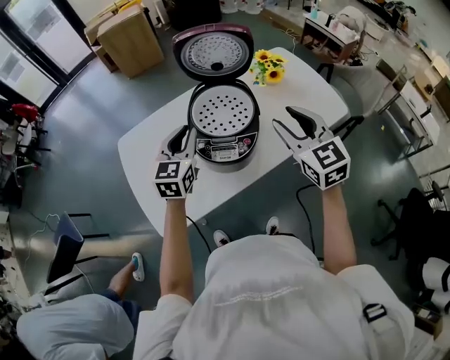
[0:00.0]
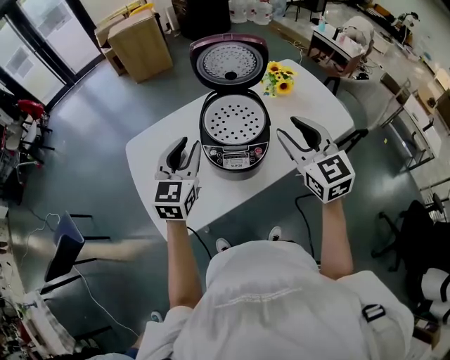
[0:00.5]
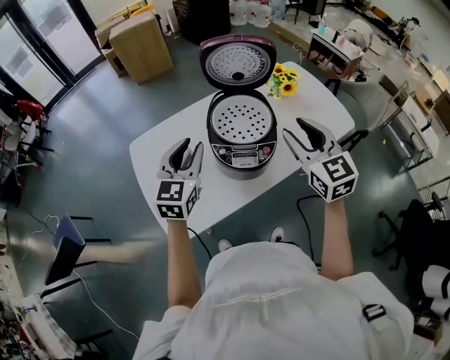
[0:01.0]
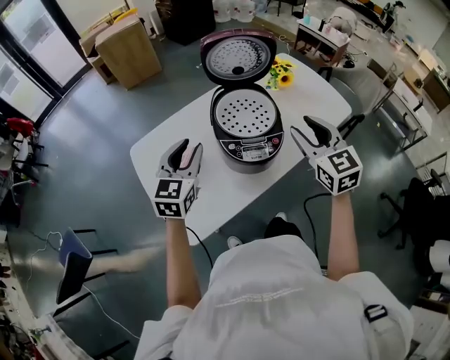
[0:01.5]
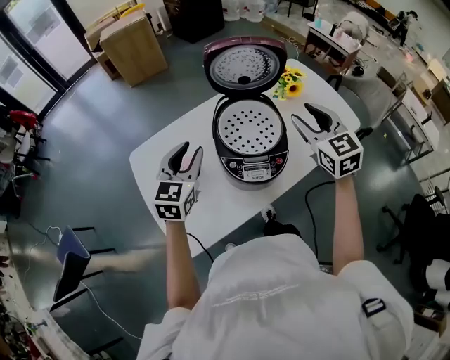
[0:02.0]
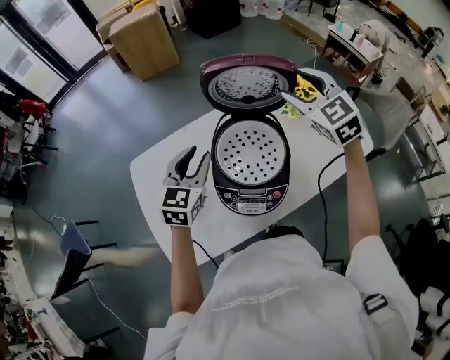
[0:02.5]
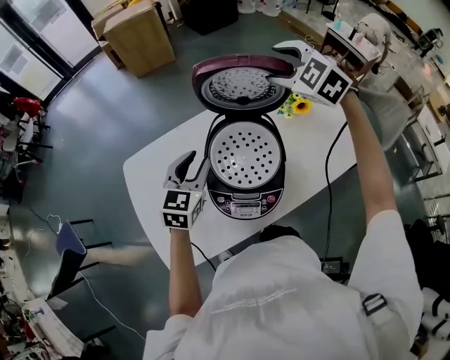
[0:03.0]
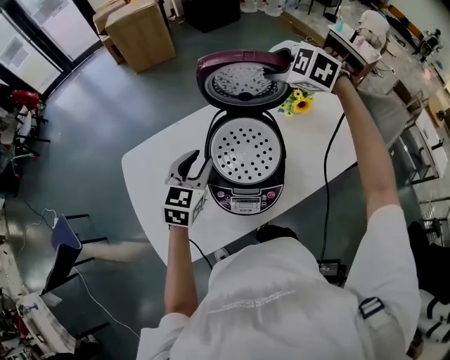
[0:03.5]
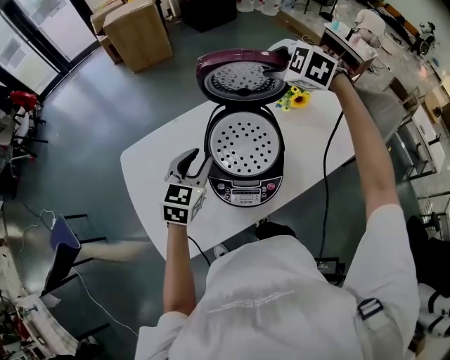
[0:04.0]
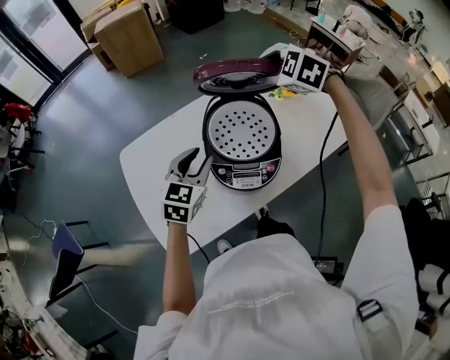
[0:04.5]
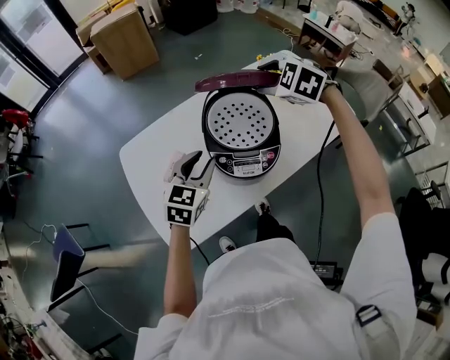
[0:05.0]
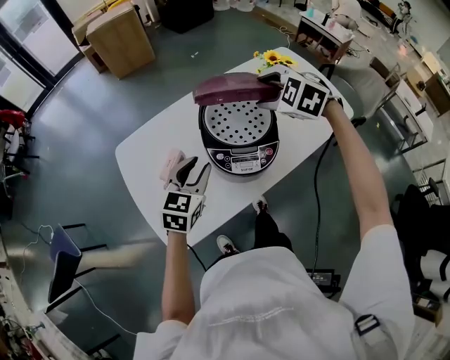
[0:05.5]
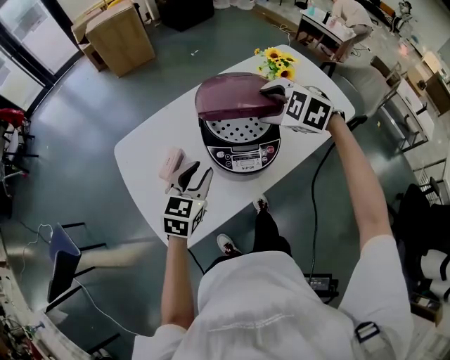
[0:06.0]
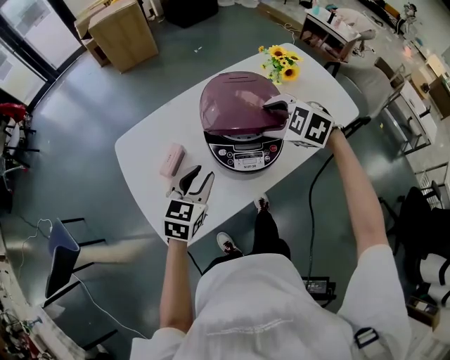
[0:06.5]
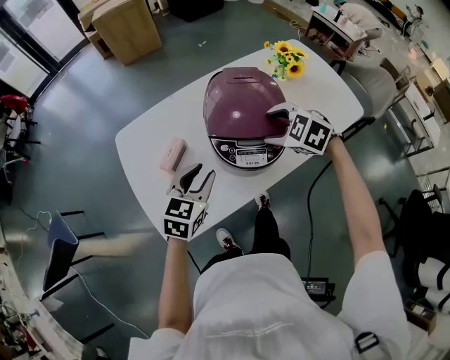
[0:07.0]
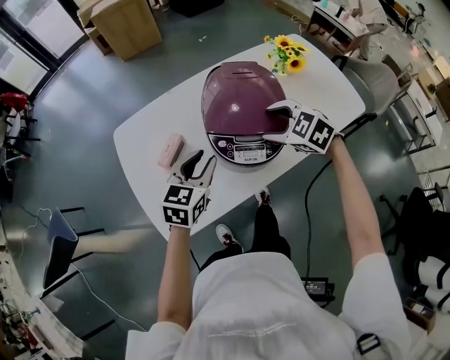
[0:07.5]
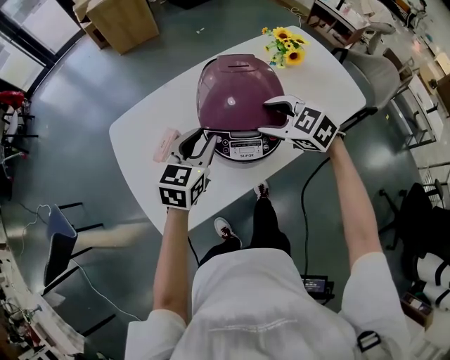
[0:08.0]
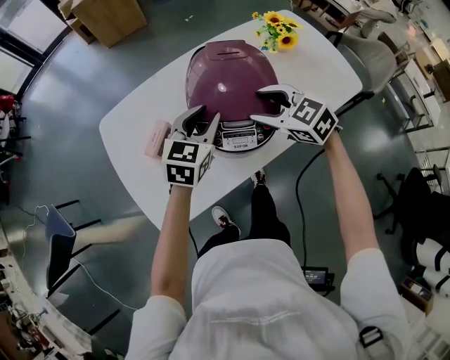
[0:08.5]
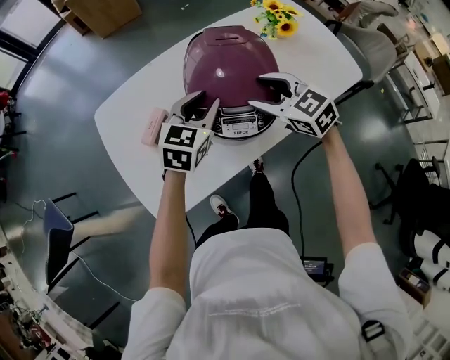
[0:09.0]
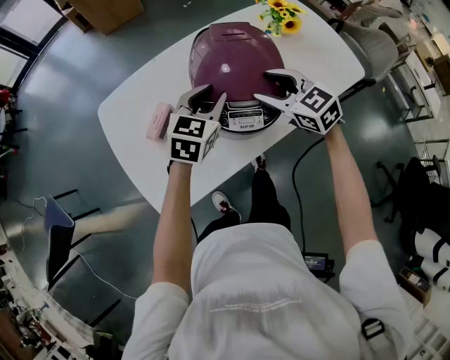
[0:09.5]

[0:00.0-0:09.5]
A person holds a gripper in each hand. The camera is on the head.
0:00.0 to 0:02.0: The left gripper travels to the left by approximately 10 cm. Meanwhile the right gripper shifts about 10 cm forward.
0:02.0 to 0:04.0: The right gripper shifts approximately 20 cm forward, and tips its fingers downward by roughly 30 degrees, while the left gripper goes some 5 cm to the right.
0:04.0 to 0:05.5: The right gripper goes about 15 cm backward. The left gripper heads backward, covering approximately 10 cm.
0:05.5 to 0:07.5: The right gripper shifts some 15 cm downward and backward.
0:07.5 to 0:09.5: The left gripper heads to the right and forward, covering roughly 10 cm; the right gripper rotates roughly 30 degrees.

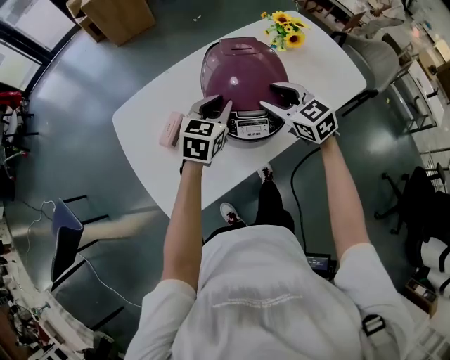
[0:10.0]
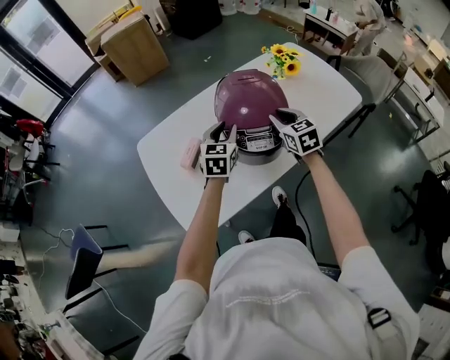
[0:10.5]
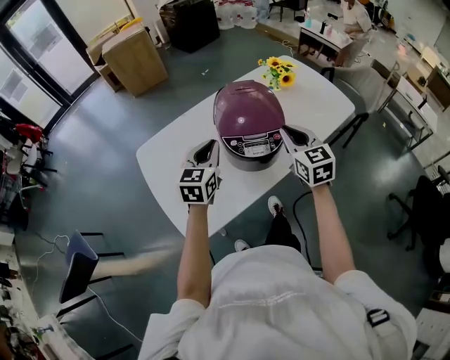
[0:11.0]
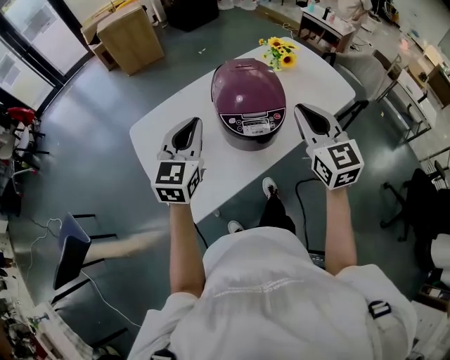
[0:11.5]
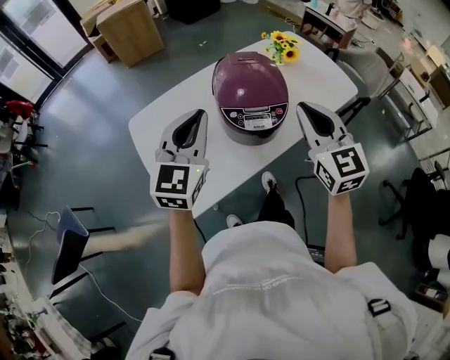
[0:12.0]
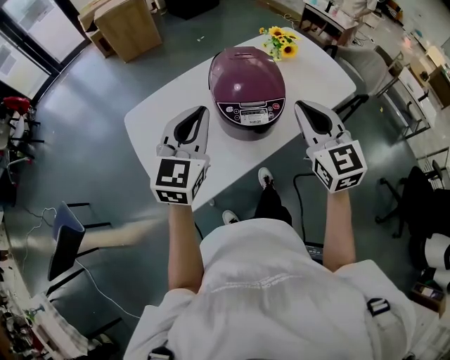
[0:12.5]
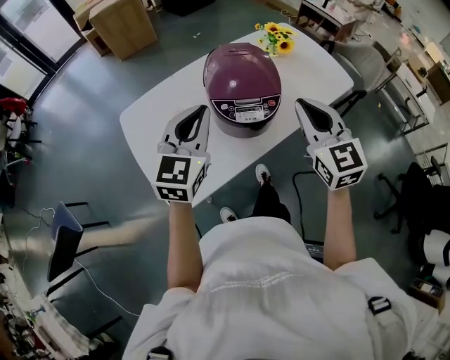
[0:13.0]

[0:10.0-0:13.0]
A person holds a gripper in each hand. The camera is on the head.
0:10.0 to 0:11.5: The left gripper heads upward, backward and to the left, covering approximately 20 cm, and swivels about 20 degrees, while the right gripper is displaced upward and backward by approximately 20 cm, rotates roughly 30 degrees, and closes.
0:11.5 to 0:13.0: The grippers stay close to where they were, moving slightly.

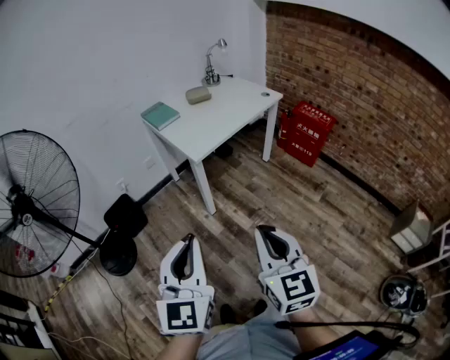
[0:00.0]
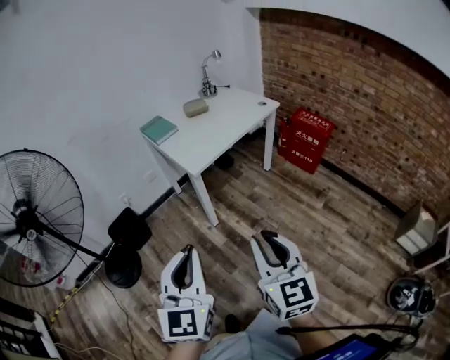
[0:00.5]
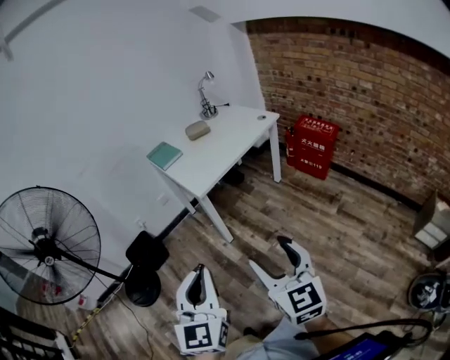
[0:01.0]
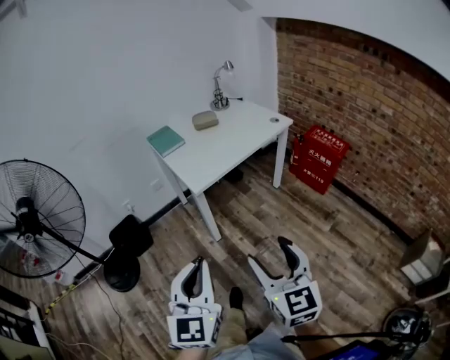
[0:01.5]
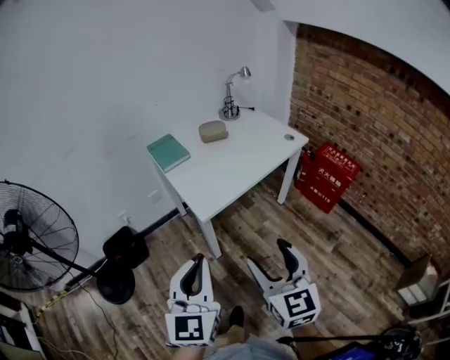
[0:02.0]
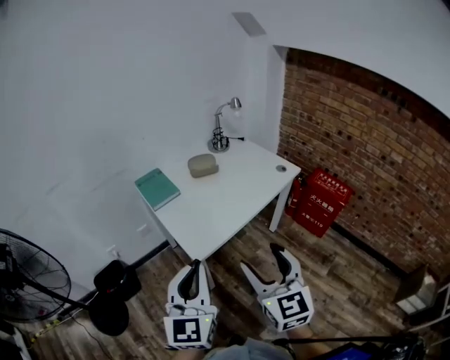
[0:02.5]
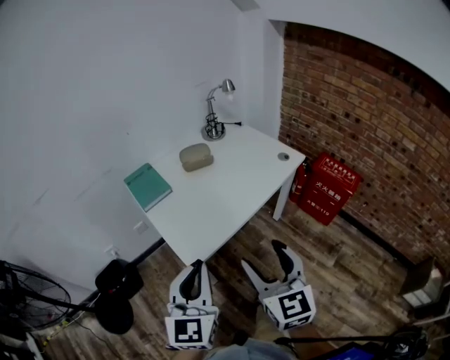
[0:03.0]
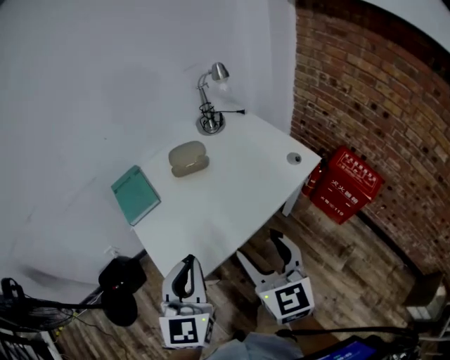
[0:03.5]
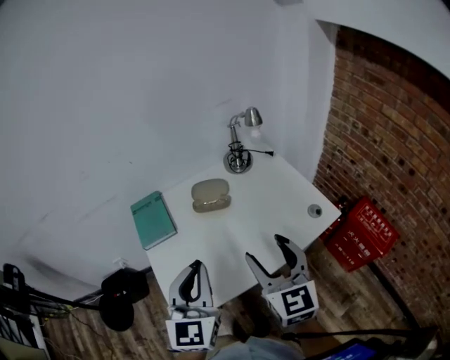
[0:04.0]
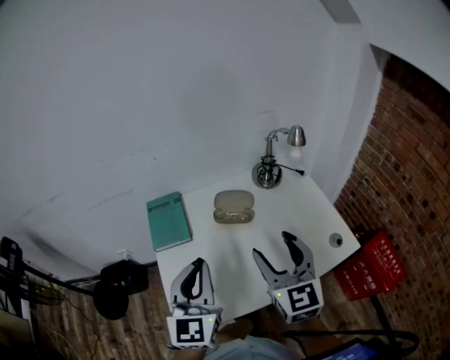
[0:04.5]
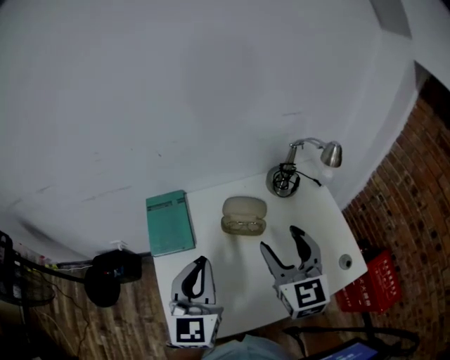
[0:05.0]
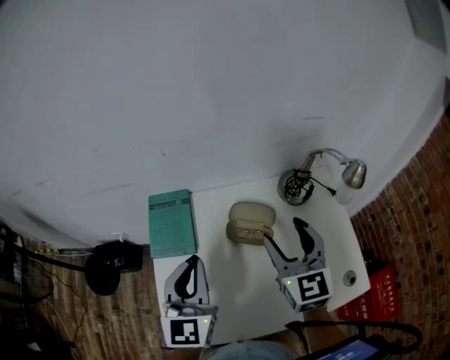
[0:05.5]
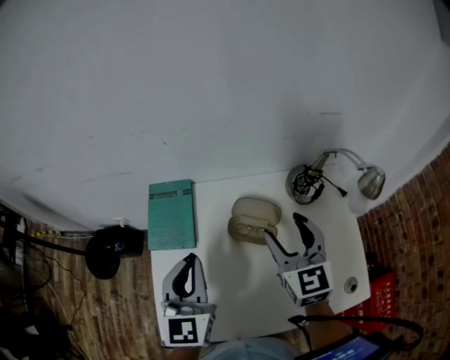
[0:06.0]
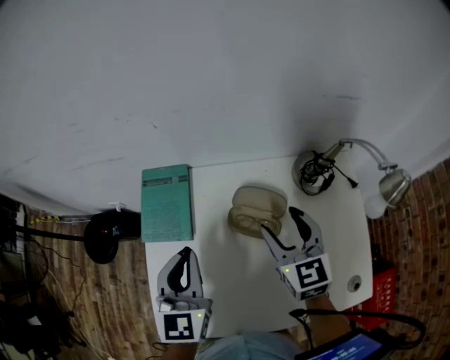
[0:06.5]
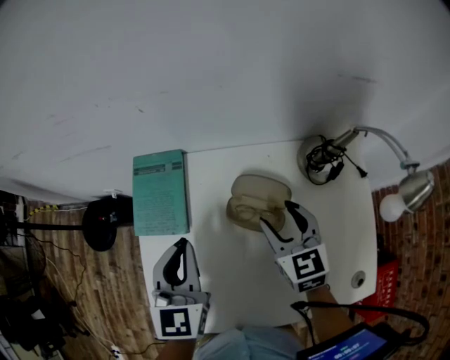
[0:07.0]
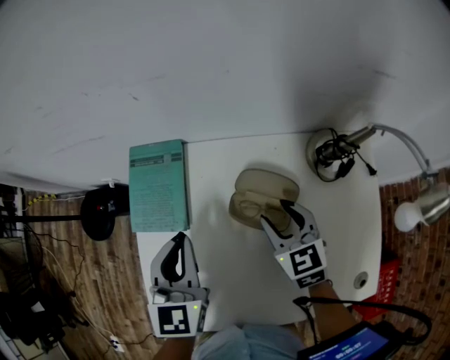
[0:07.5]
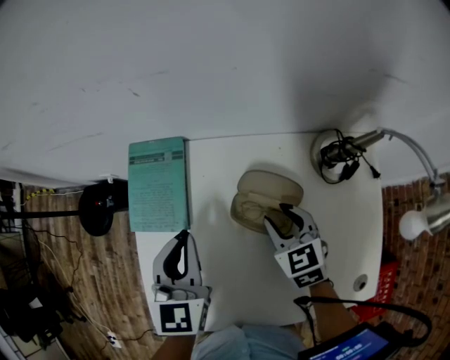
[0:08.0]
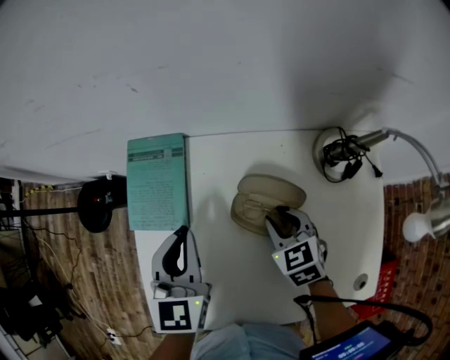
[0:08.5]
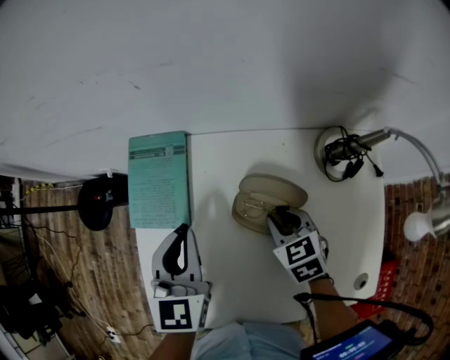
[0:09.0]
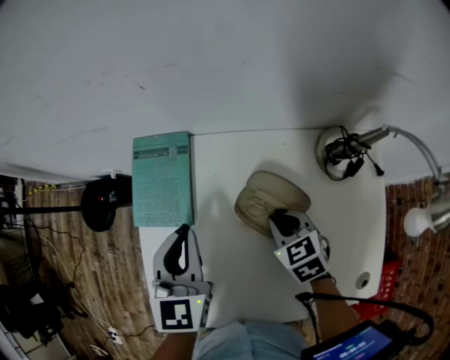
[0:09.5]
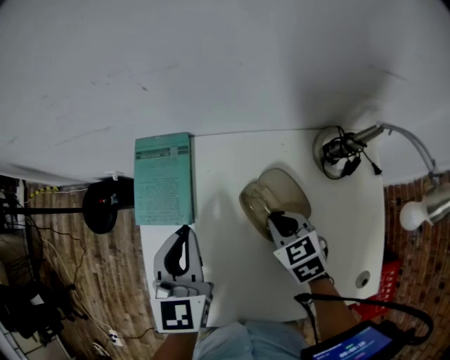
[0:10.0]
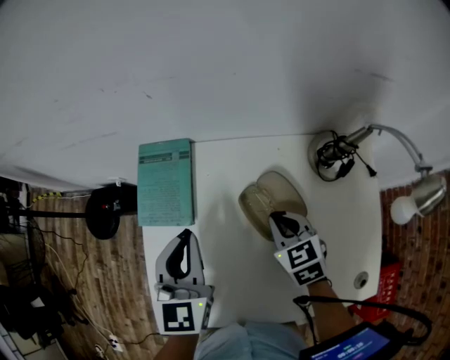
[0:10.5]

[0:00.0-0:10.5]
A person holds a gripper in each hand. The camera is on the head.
0:00.0 to 0:02.0: Both grippers travel together forward, some 25 cm. The right gripper opens up.
0:02.0 to 0:04.0: Both grippers are carried forward, approximately 50 cm.
0:04.0 to 0:06.5: The grippers both shift forward by roughly 30 cm. The left gripper rotates approximately 30 degrees. The right gripper rotates approximately 30 degrees.
0:06.5 to 0:08.5: The right gripper travels downward by roughly 15 cm, turns by roughly 30 degrees, and closes. The left gripper is displaced downward by approximately 5 cm.
0:08.5 to 0:10.5: There are only small adjustments of the grippers.

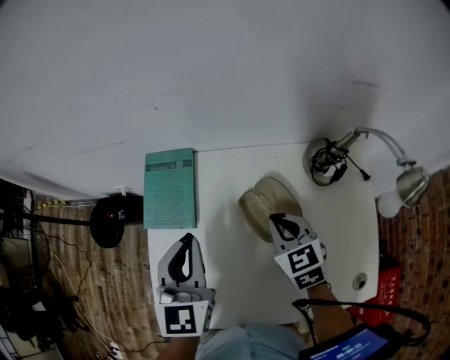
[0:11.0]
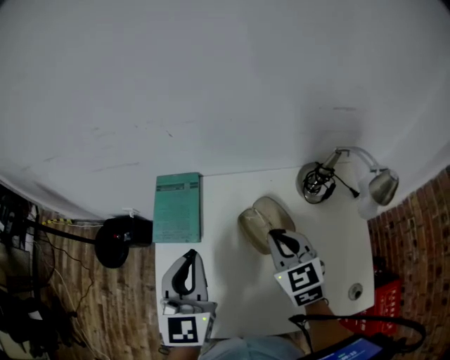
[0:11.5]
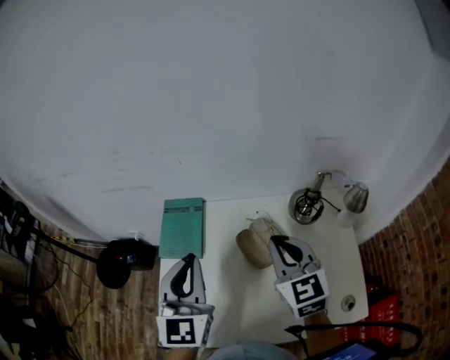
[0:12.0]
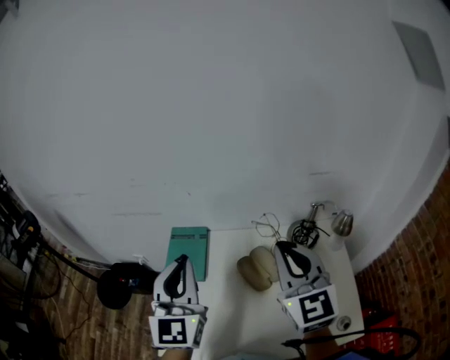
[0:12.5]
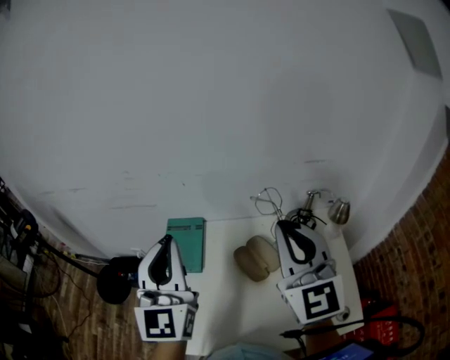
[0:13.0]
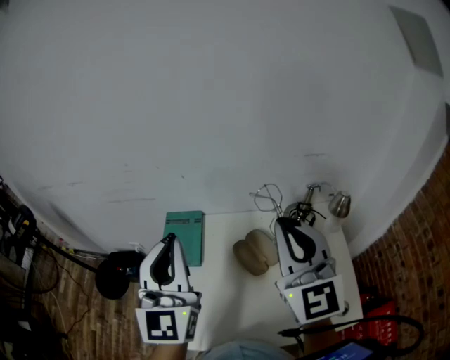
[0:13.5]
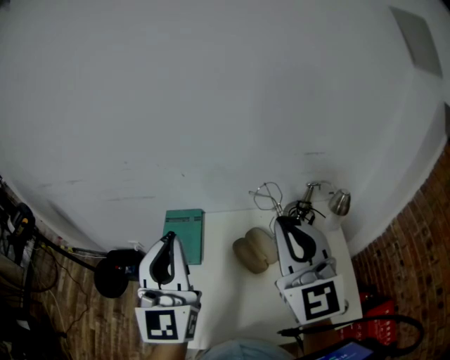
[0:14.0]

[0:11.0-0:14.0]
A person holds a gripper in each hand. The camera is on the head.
0:11.0 to 0:12.5: The left gripper travels upward by approximately 15 cm, and swivels about 20 degrees. The right gripper shifts roughly 30 cm upward, and tilts its fingers about 40 degrees upward.
0:12.5 to 0:14.0: The right gripper shifts by approximately 5 cm.
